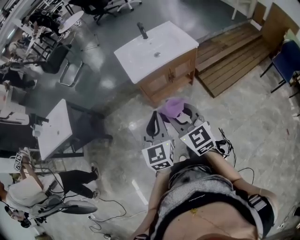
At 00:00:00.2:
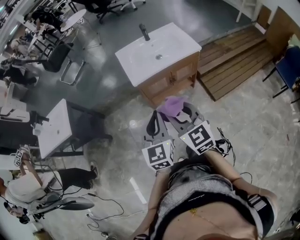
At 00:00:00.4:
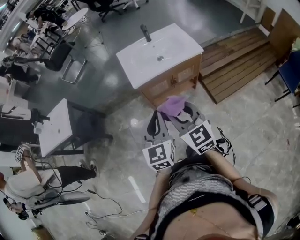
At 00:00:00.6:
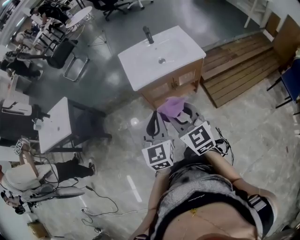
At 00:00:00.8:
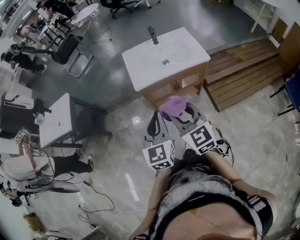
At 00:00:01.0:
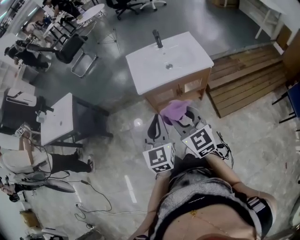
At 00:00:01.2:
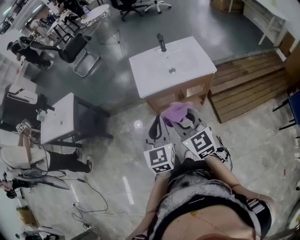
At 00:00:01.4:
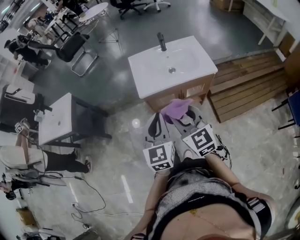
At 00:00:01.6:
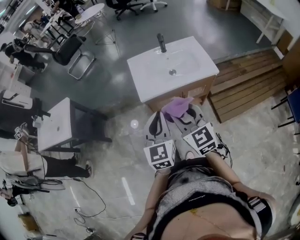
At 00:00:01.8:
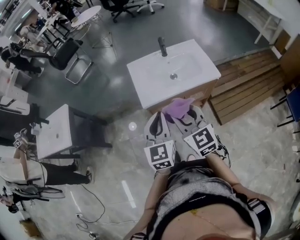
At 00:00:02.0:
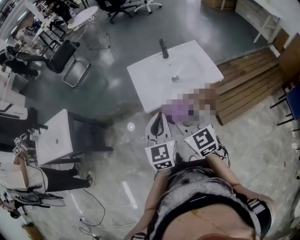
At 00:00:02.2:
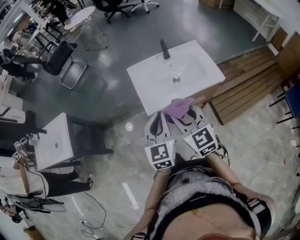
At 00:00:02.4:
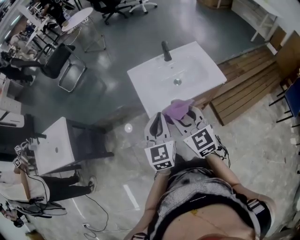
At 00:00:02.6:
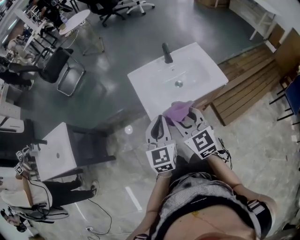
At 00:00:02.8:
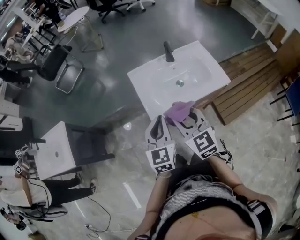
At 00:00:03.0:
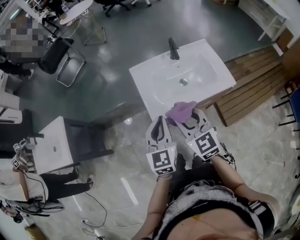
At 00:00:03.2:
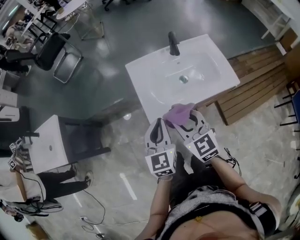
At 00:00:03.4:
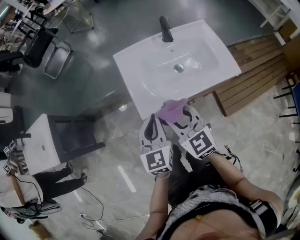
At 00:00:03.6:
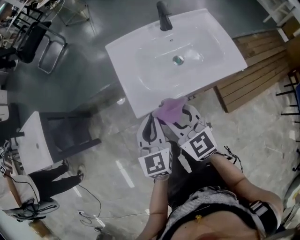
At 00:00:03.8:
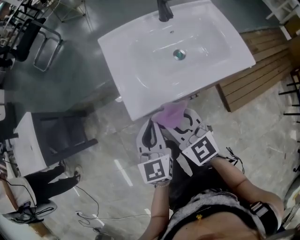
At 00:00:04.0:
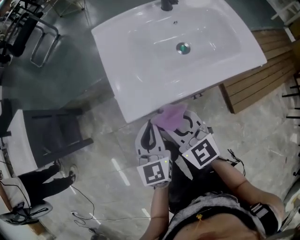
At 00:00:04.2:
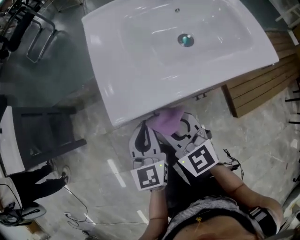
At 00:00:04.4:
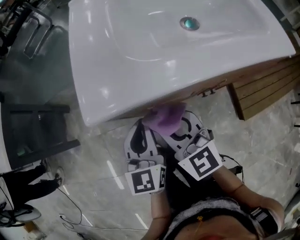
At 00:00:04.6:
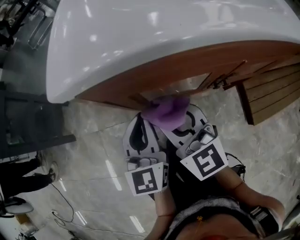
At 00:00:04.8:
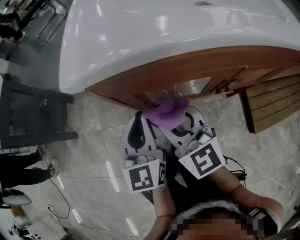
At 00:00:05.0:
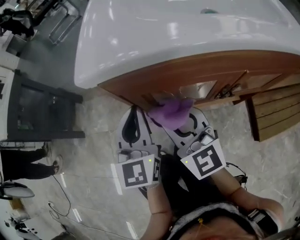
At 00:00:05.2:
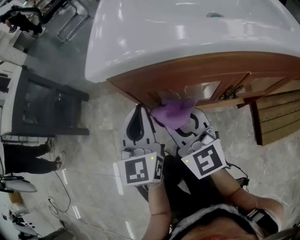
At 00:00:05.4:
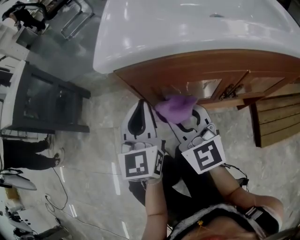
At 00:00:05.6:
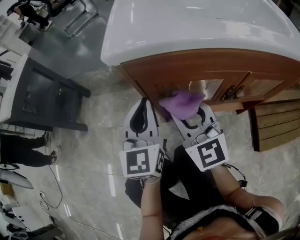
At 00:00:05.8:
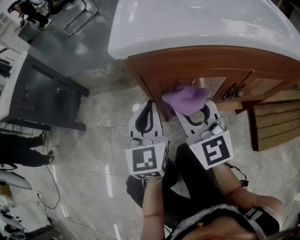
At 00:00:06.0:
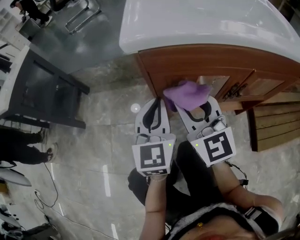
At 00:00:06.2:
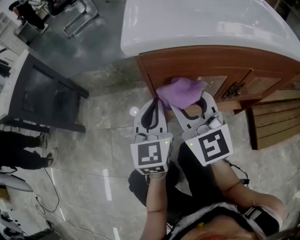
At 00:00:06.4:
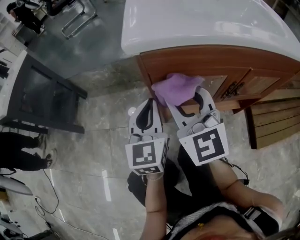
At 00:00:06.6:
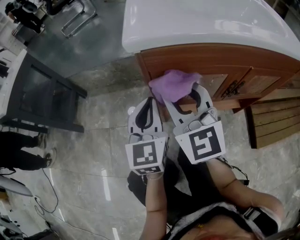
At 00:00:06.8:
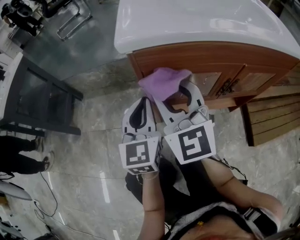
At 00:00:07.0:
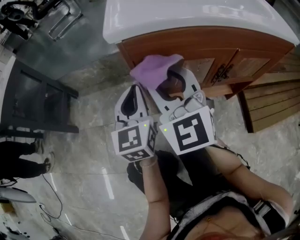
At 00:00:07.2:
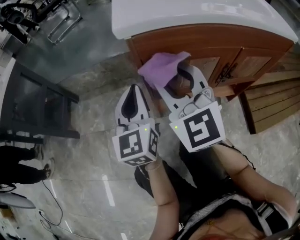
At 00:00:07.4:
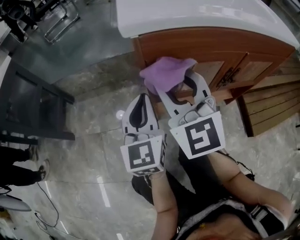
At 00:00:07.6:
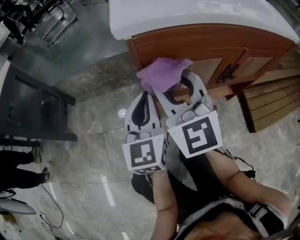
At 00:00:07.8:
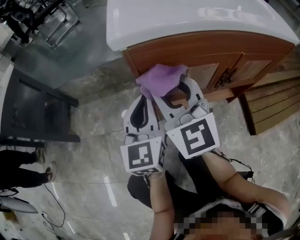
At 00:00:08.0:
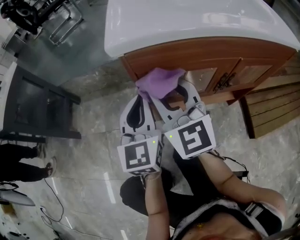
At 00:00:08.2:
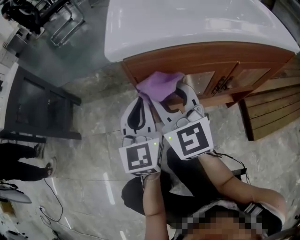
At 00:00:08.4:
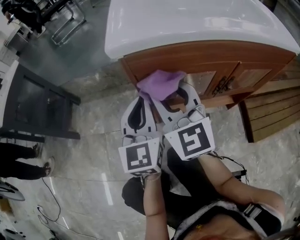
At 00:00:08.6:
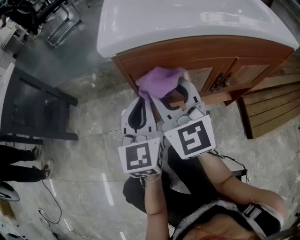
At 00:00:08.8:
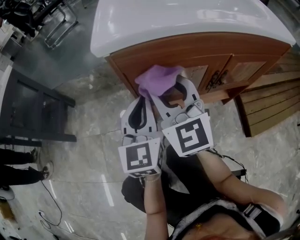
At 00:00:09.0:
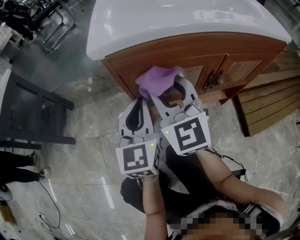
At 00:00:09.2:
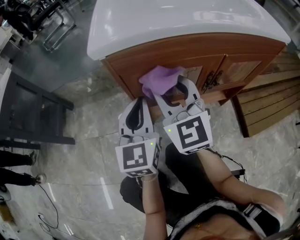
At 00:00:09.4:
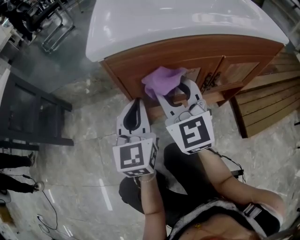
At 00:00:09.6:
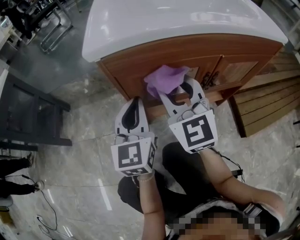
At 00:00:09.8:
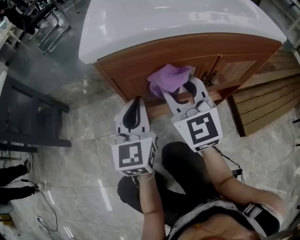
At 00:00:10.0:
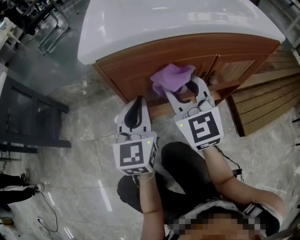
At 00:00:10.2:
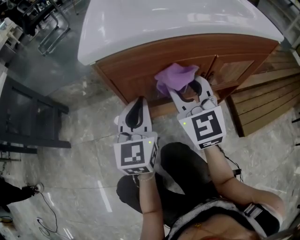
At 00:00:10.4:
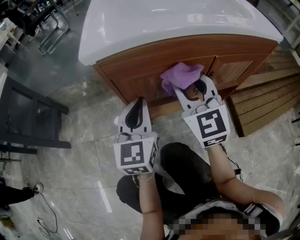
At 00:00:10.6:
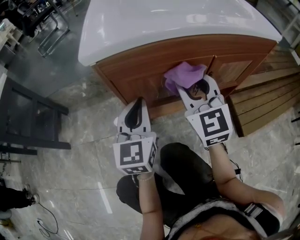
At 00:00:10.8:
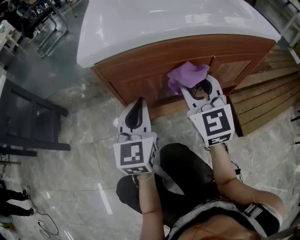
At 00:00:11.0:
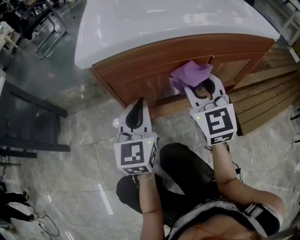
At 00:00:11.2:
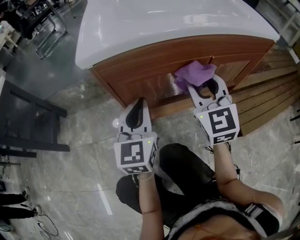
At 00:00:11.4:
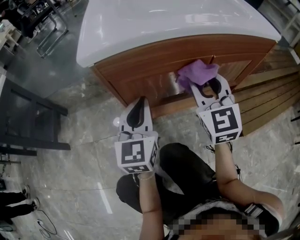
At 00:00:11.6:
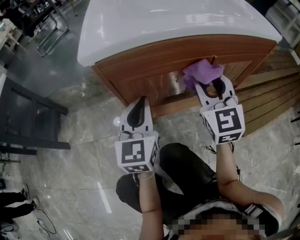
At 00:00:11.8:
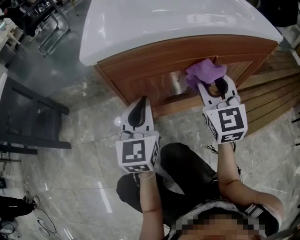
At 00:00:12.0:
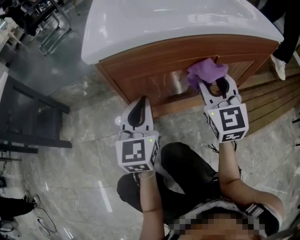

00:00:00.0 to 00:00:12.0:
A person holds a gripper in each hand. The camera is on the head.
00:00:00.0 to 00:00:01.6: The right gripper goes roughly 20 cm forward and to the right, while the left gripper moves forward, about 15 cm.
00:00:01.6 to 00:00:03.0: The two grippers go approximately 15 cm forward.
00:00:03.0 to 00:00:04.4: Both grippers move downward, approximately 40 cm.
00:00:04.4 to 00:00:06.0: The grippers stay close to where they were, moving slightly.
00:00:06.0 to 00:00:07.6: The right gripper shifts by some 5 cm.
00:00:07.6 to 00:00:09.0: The grippers make only small movements.
00:00:09.0 to 00:00:10.4: The right gripper travels to the right by roughly 10 cm.
00:00:10.4 to 00:00:12.0: The right gripper moves to the right, about 5 cm.

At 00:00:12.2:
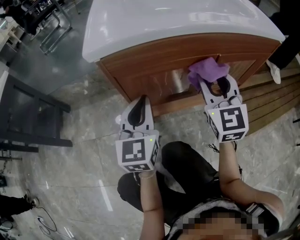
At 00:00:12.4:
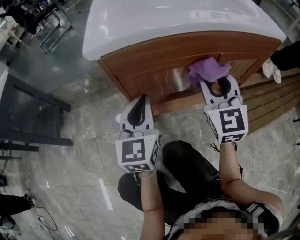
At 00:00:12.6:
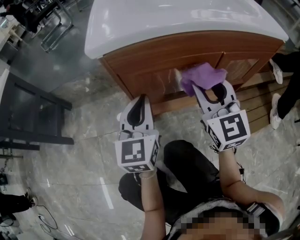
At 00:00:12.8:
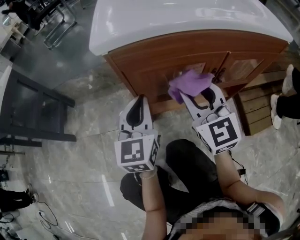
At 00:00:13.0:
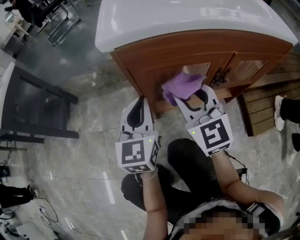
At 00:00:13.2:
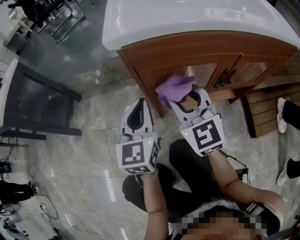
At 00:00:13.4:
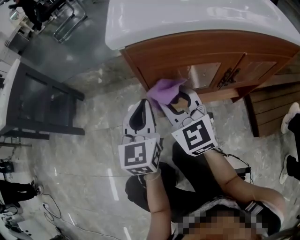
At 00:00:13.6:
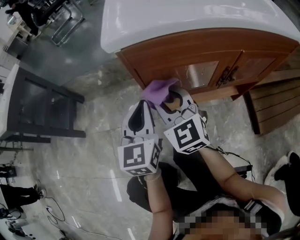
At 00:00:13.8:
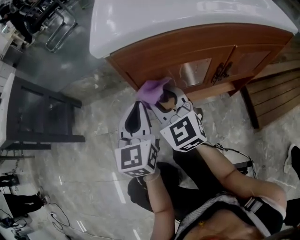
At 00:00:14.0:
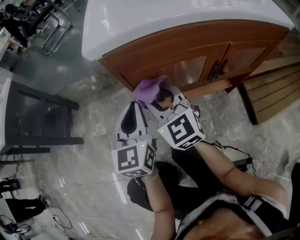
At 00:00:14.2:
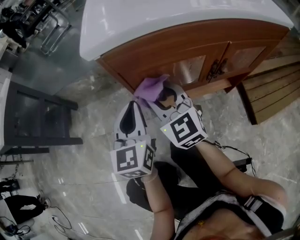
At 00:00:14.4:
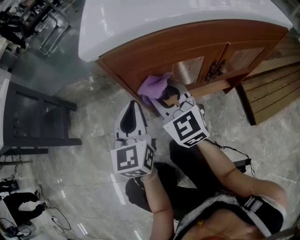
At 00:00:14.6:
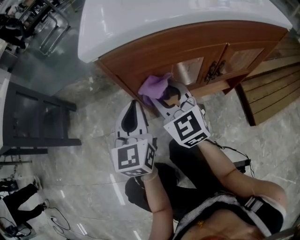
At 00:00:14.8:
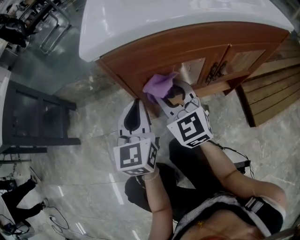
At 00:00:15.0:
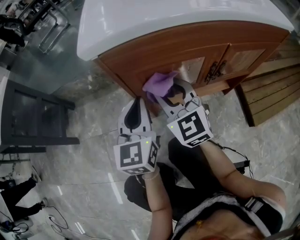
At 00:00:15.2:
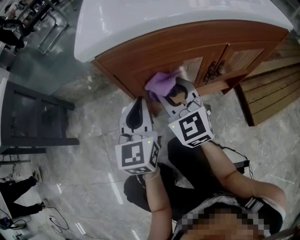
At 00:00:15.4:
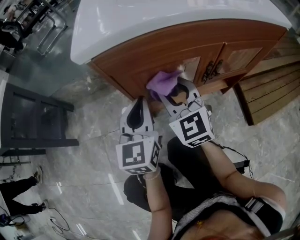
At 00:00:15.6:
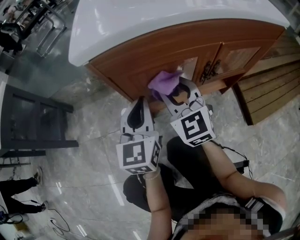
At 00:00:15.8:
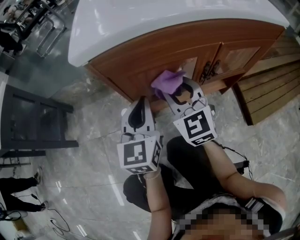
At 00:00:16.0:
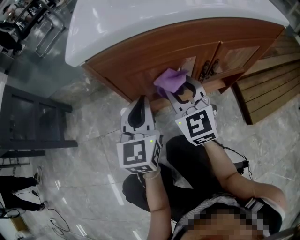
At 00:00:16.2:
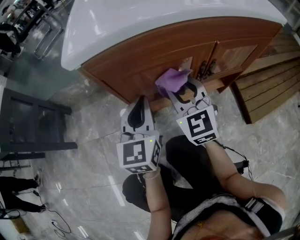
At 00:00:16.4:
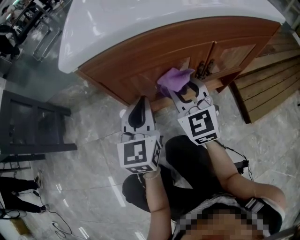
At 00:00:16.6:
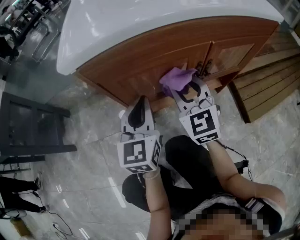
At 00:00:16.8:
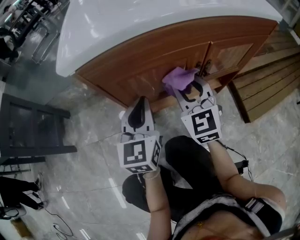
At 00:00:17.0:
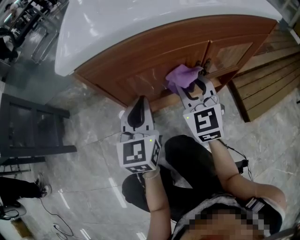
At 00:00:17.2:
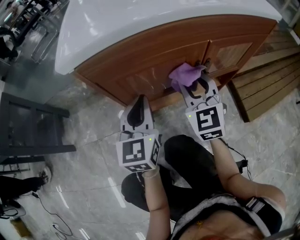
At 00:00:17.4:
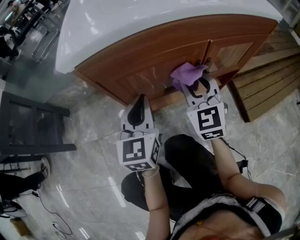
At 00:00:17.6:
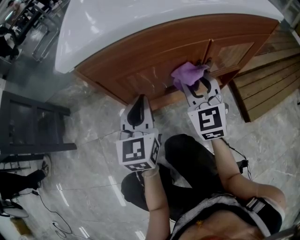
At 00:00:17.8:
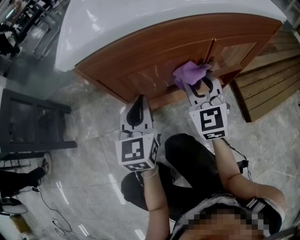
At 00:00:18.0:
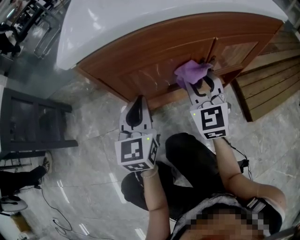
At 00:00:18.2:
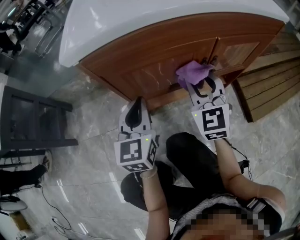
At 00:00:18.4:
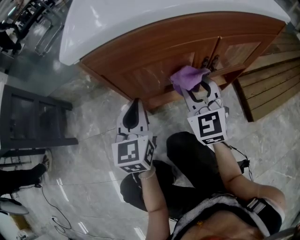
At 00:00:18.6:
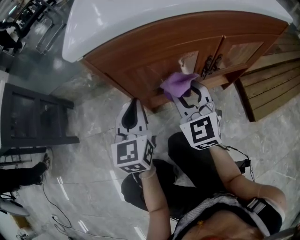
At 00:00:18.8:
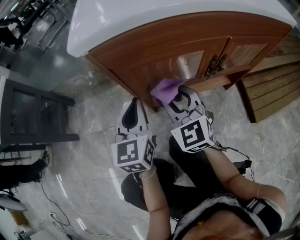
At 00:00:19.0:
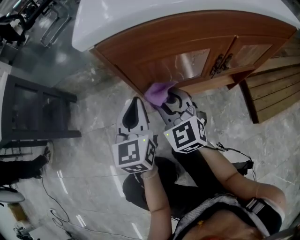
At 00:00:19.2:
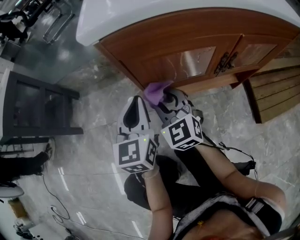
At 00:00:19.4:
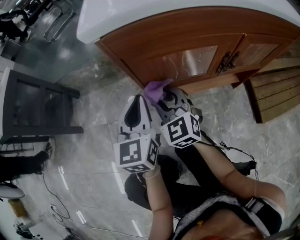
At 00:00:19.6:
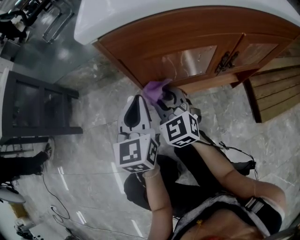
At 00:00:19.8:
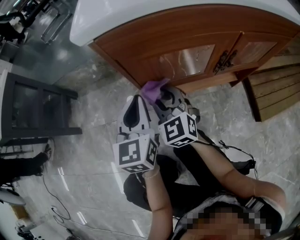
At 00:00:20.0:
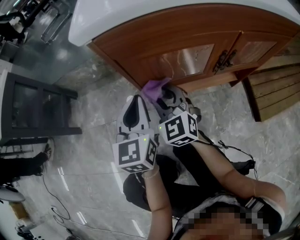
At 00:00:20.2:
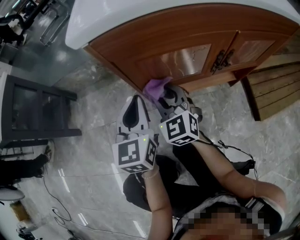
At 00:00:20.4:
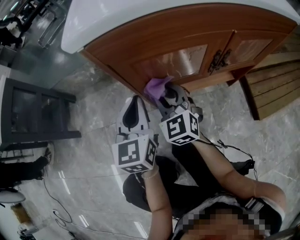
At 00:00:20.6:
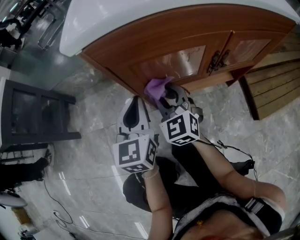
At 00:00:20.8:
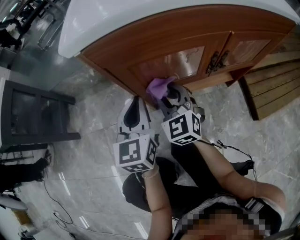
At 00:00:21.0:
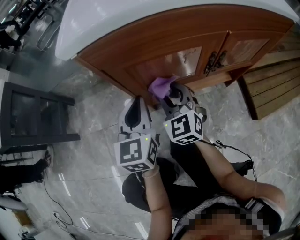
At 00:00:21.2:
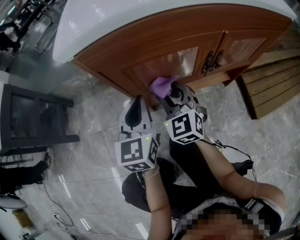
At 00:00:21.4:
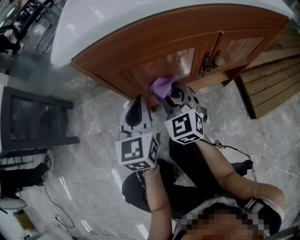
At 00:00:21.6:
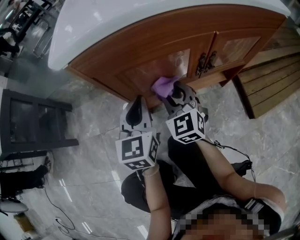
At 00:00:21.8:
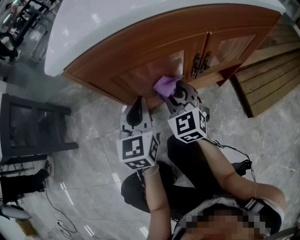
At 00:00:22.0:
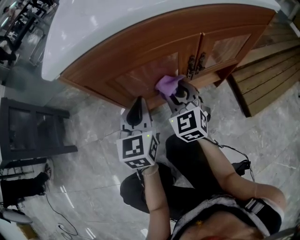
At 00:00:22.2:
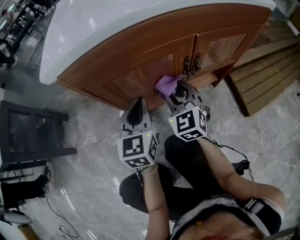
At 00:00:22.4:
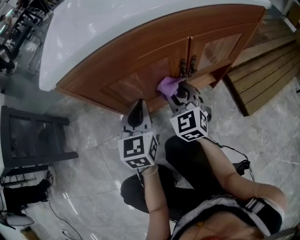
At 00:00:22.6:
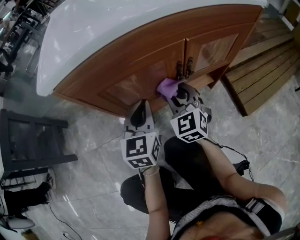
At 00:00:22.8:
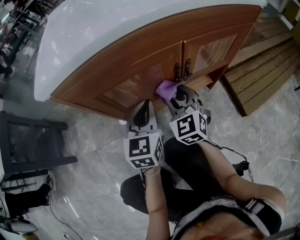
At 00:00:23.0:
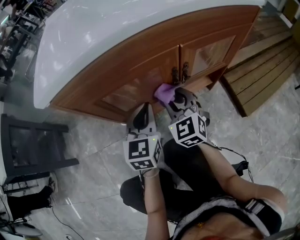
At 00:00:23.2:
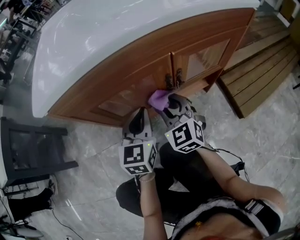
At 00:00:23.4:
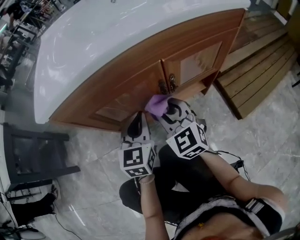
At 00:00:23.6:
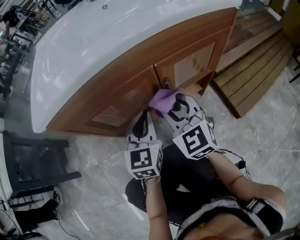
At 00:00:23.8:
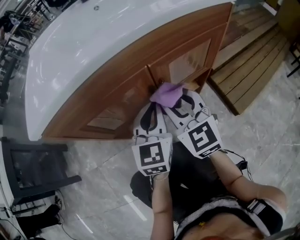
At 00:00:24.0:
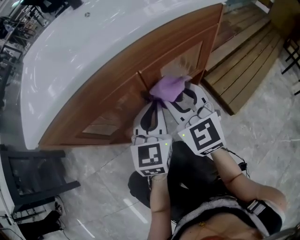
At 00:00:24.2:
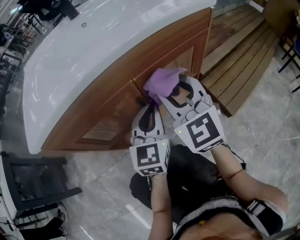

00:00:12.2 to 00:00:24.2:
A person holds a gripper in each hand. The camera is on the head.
00:00:12.2 to 00:00:13.8: The right gripper moves to the left, about 20 cm, and rotates about 30 degrees; the left gripper heads to the left, covering approximately 5 cm.
00:00:13.8 to 00:00:15.2: The right gripper goes approximately 5 cm to the right.
00:00:15.2 to 00:00:16.6: The right gripper goes roughly 10 cm to the right.
00:00:16.6 to 00:00:18.2: The grippers stay close to where they were, moving slightly.
00:00:18.2 to 00:00:19.8: The left gripper heads to the left, covering about 5 cm. The right gripper travels to the left and downward by approximately 20 cm.
00:00:19.8 to 00:00:21.2: The right gripper heads to the right, covering roughly 10 cm.
00:00:21.2 to 00:00:22.6: The two grippers go roughly 10 cm to the right.
00:00:22.6 to 00:00:24.2: The left gripper heads to the right, covering about 15 cm. Meanwhile the right gripper goes some 20 cm upward and to the right.
